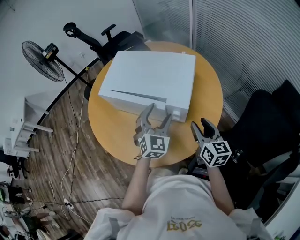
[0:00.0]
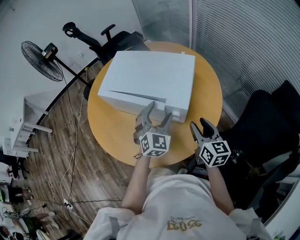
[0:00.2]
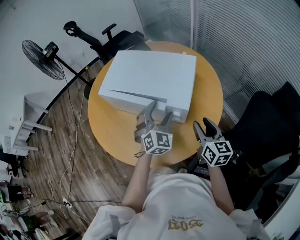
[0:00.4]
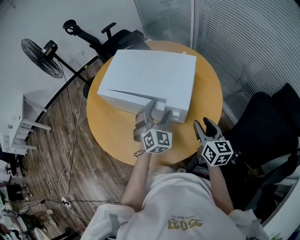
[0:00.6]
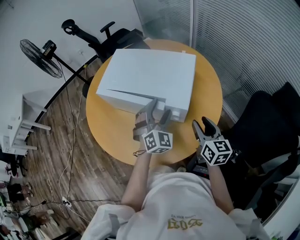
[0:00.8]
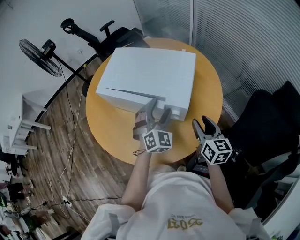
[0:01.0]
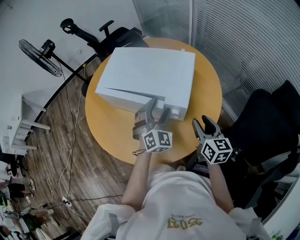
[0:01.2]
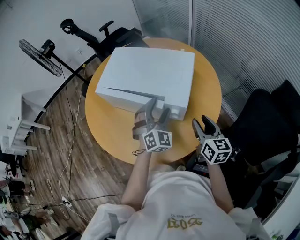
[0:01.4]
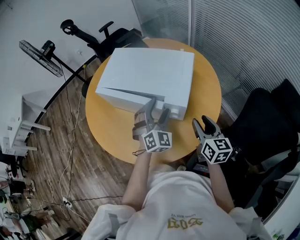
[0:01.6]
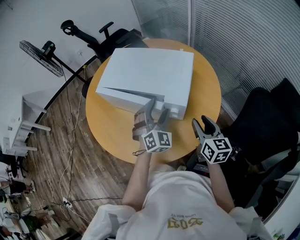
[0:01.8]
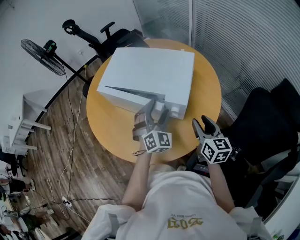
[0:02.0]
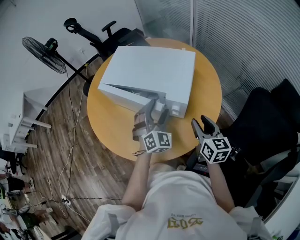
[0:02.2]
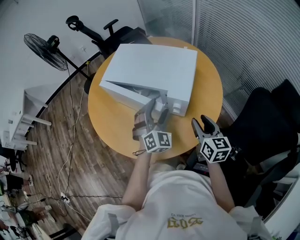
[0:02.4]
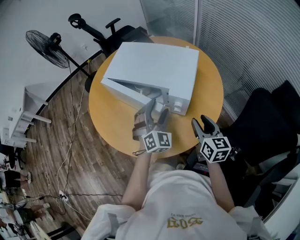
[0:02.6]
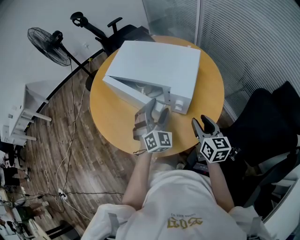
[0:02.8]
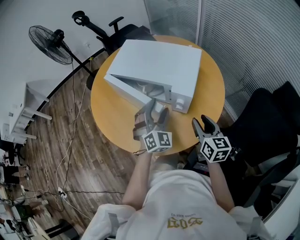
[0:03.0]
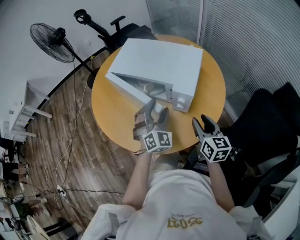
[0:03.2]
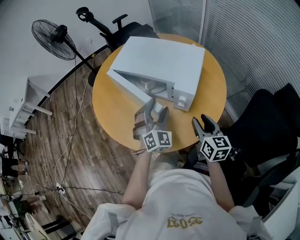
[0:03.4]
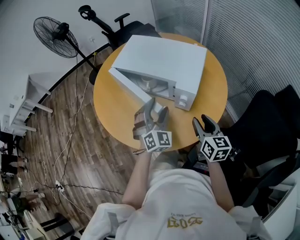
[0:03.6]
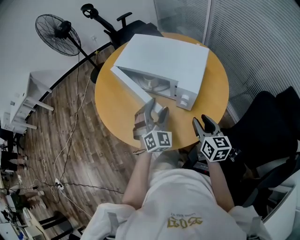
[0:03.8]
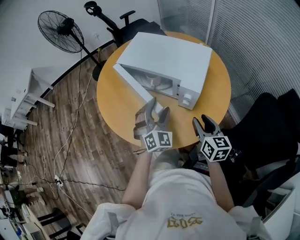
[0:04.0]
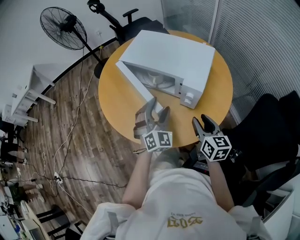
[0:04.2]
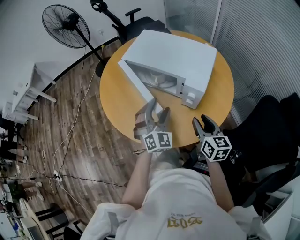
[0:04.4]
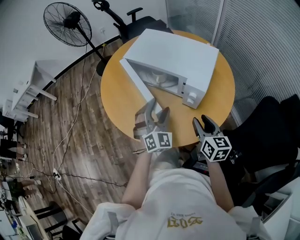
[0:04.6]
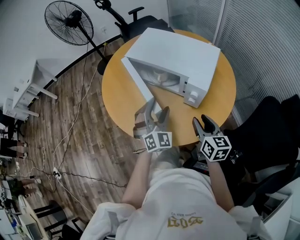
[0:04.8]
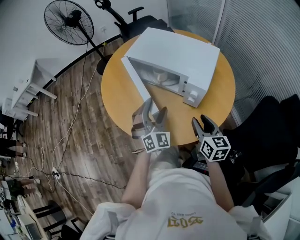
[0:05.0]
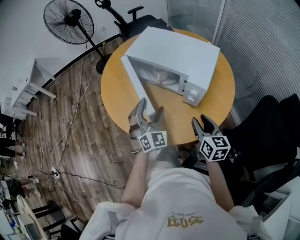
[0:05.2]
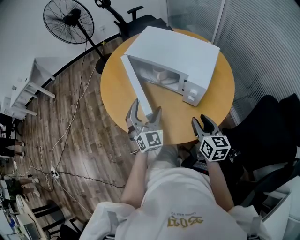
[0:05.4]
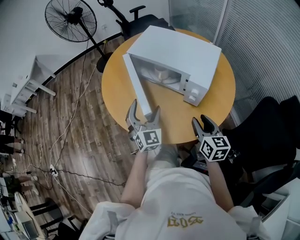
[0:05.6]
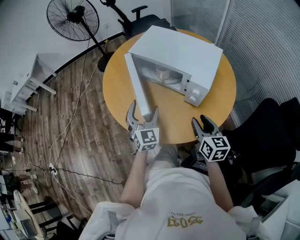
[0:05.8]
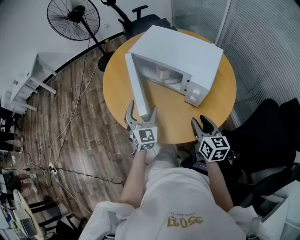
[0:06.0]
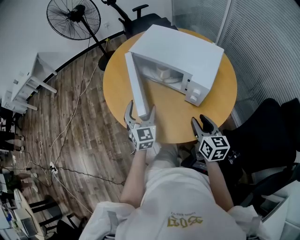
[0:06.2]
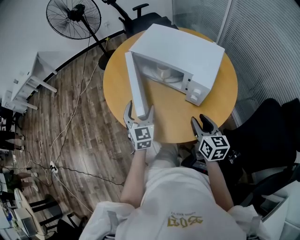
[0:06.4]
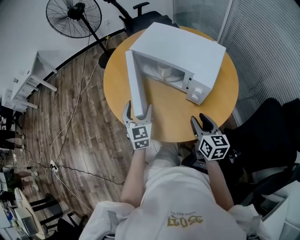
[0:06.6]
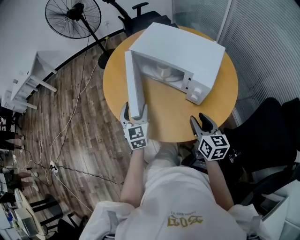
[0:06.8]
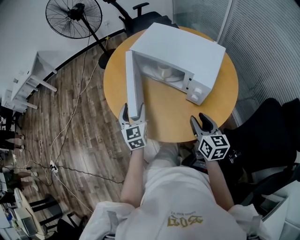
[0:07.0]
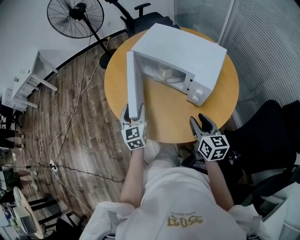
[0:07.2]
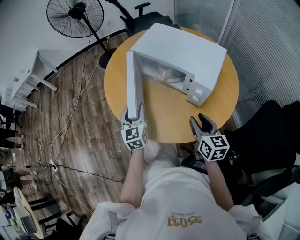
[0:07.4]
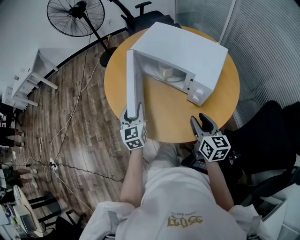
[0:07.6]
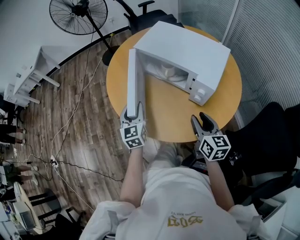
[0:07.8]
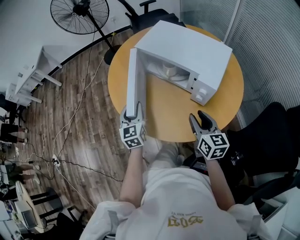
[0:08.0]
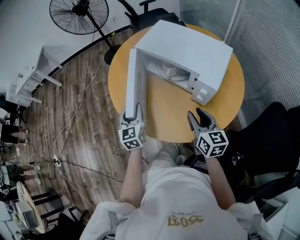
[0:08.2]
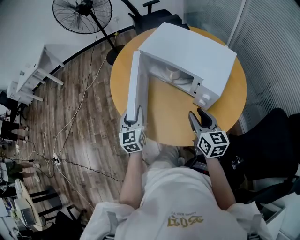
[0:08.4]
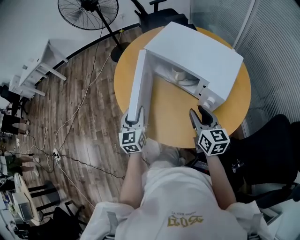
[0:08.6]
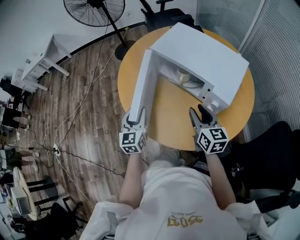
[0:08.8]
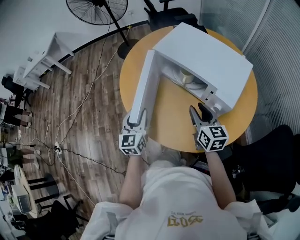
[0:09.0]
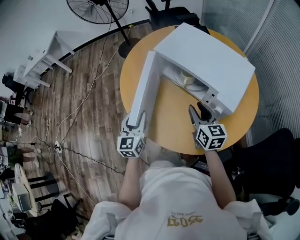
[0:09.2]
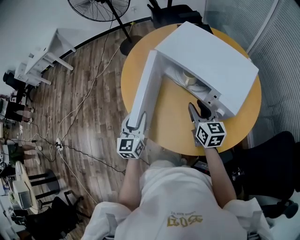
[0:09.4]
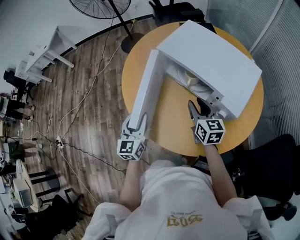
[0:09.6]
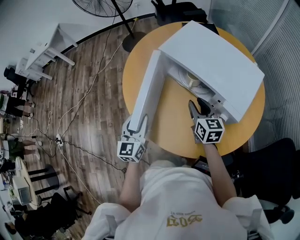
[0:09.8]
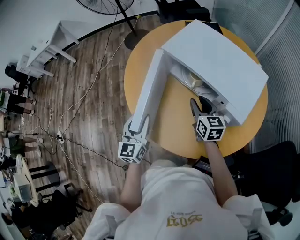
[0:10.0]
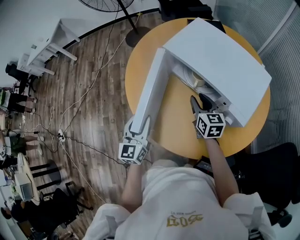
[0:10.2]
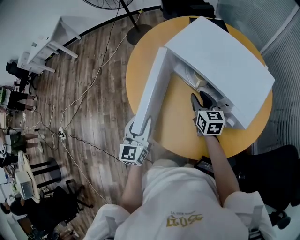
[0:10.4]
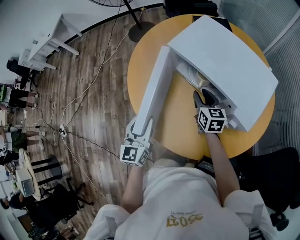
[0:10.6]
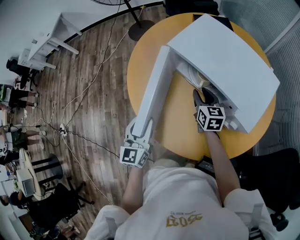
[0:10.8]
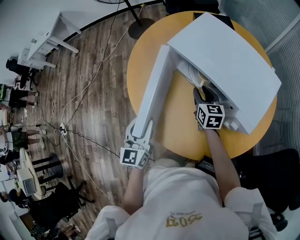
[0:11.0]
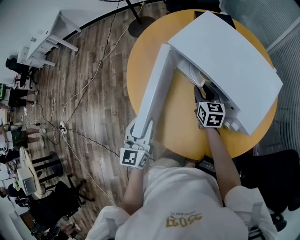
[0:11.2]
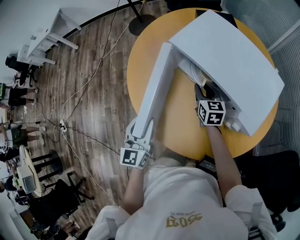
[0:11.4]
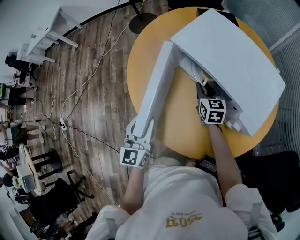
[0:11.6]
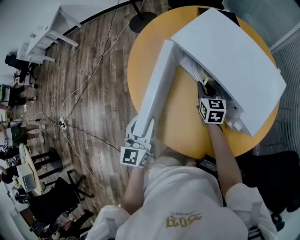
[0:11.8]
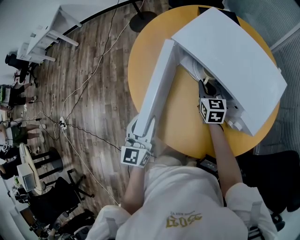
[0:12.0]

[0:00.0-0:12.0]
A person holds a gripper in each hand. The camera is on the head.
0:00.0 to 0:01.6: The grippers make only small movements.
0:01.6 to 0:03.0: The left gripper changes place by some 5 cm.
0:03.0 to 0:04.4: The left gripper ends up about 5 cm from where it was.
0:04.4 to 0:06.0: The left gripper heads to the left, covering roughly 10 cm, and rotates approximately 30 degrees.
0:06.0 to 0:07.6: The left gripper heads to the left, covering some 5 cm, changes its angle by about 20 degrees, and closes up.
0:07.6 to 0:09.0: The right gripper moves forward and to the left, roughly 10 cm.
0:09.0 to 0:10.4: The right gripper travels forward and downward by roughly 15 cm.
0:10.4 to 0:12.0: The right gripper travels forward by some 5 cm.

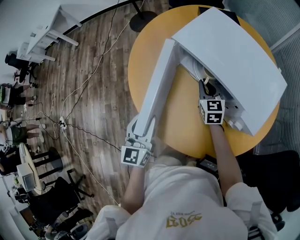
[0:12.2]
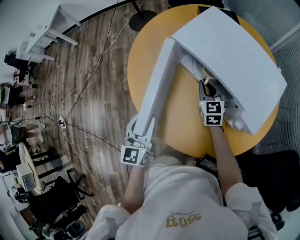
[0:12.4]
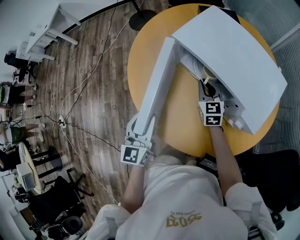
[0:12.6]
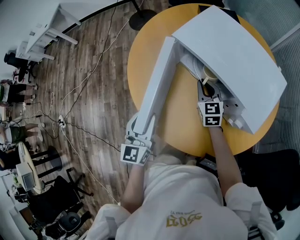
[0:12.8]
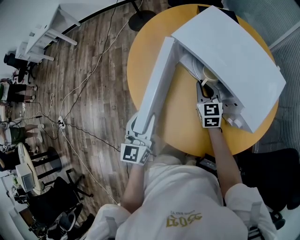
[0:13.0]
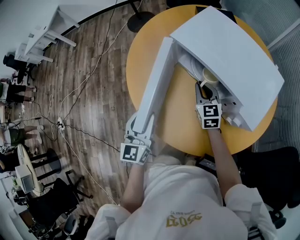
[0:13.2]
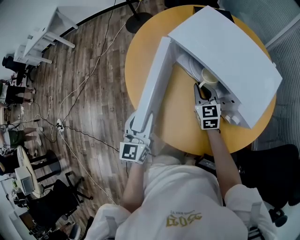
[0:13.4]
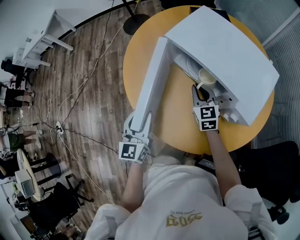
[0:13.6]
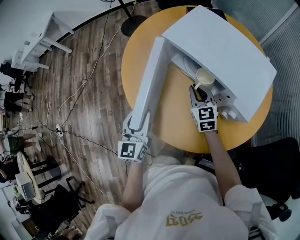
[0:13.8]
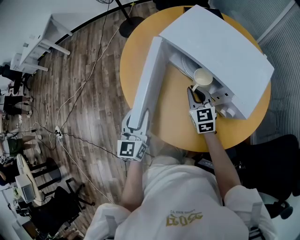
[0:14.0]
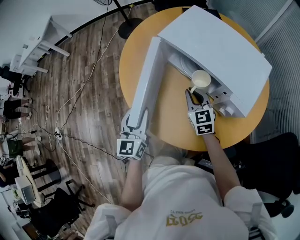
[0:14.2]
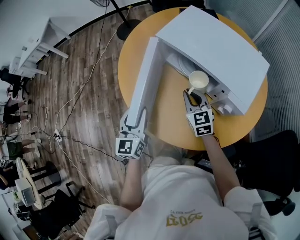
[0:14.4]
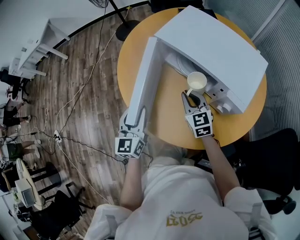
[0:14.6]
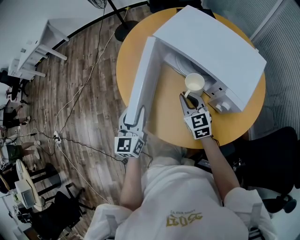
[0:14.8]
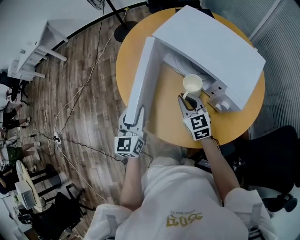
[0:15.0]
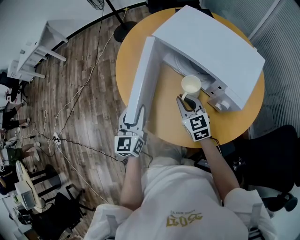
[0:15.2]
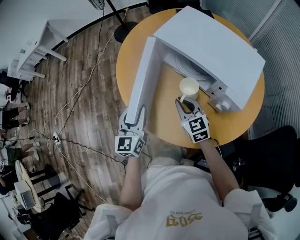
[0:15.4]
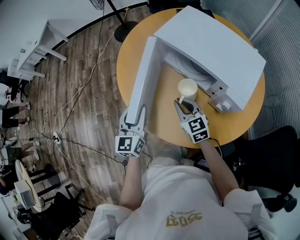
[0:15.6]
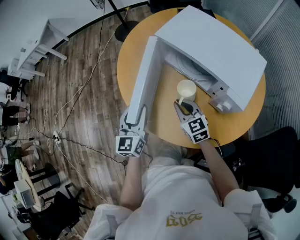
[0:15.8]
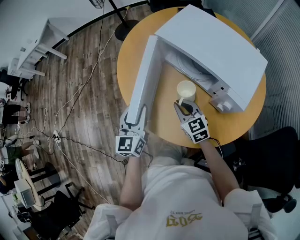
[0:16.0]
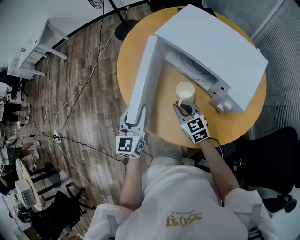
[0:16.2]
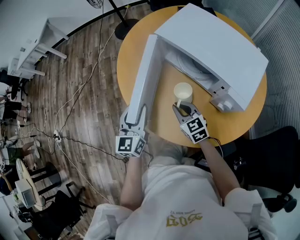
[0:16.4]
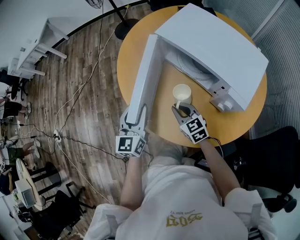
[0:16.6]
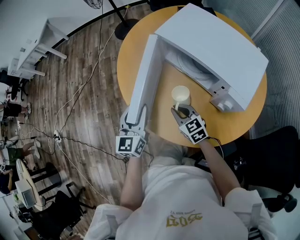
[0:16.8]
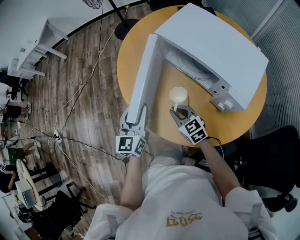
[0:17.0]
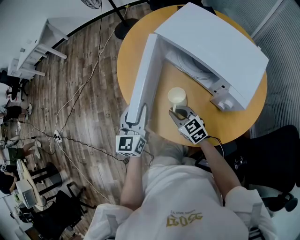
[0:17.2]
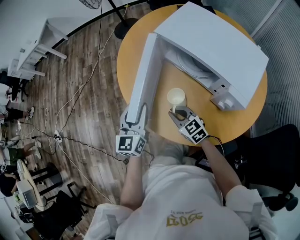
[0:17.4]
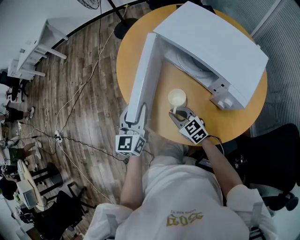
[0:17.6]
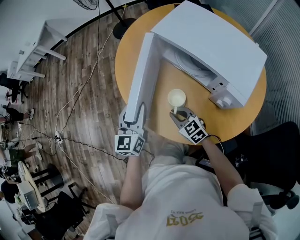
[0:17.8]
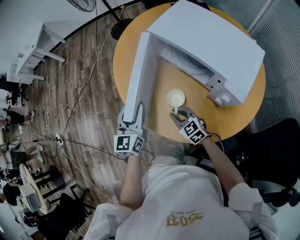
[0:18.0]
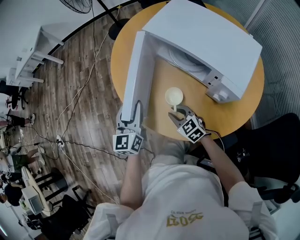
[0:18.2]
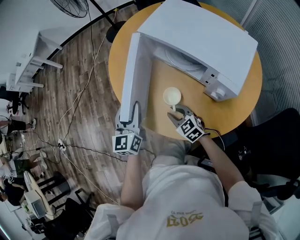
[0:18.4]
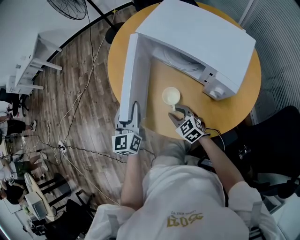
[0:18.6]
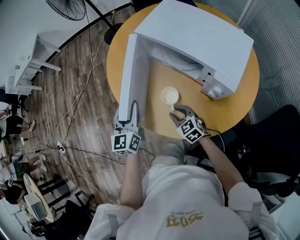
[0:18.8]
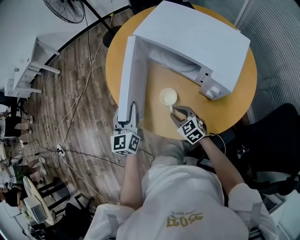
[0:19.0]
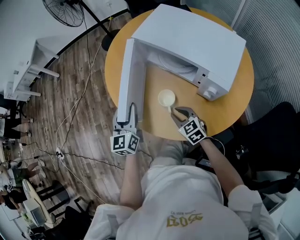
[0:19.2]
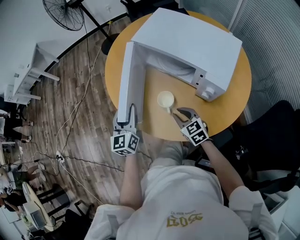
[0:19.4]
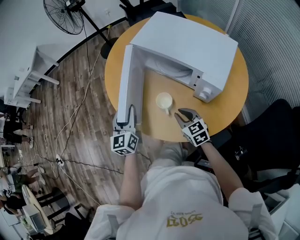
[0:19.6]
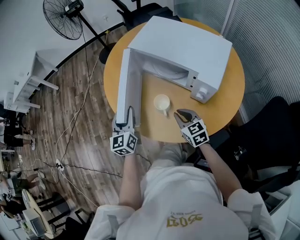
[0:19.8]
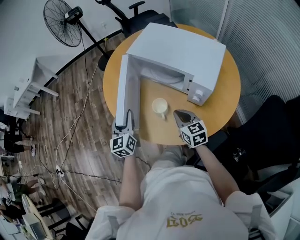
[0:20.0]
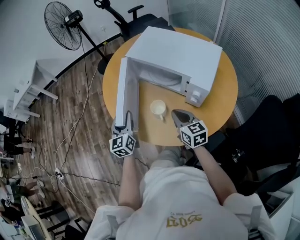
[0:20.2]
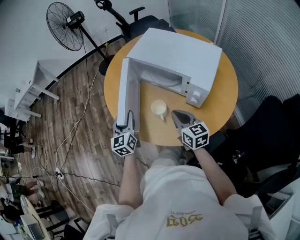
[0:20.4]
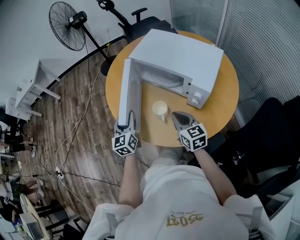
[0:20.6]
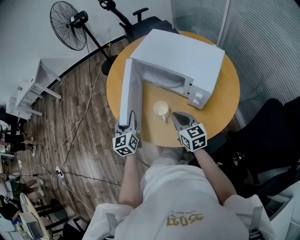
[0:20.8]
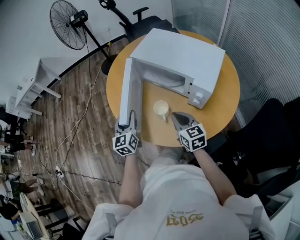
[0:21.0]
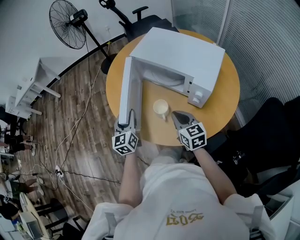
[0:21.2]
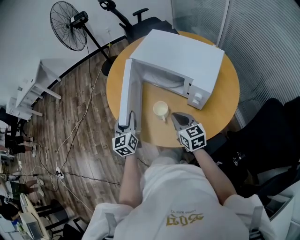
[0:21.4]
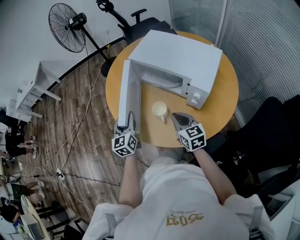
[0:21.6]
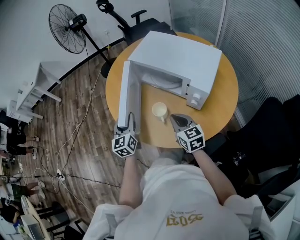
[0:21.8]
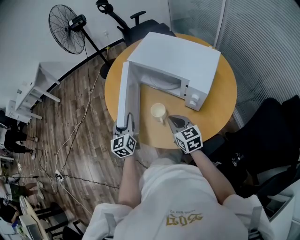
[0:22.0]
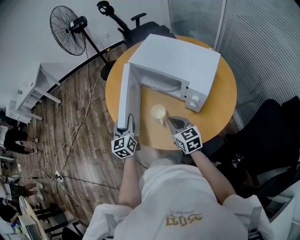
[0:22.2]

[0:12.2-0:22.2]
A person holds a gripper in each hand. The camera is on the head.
0:12.2 to 0:13.6: The right gripper changes place by some 5 cm.
0:13.6 to 0:15.0: The right gripper travels backward by approximately 10 cm.
0:15.0 to 0:16.4: The right gripper shifts by approximately 5 cm.
0:16.4 to 0:18.0: The right gripper heads downward, covering approximately 5 cm.
0:18.0 to 0:19.4: The right gripper travels to the right by some 5 cm.
0:19.4 to 0:20.8: The right gripper travels upward by approximately 10 cm, turns by about 20 degrees, and closes.
0:20.8 to 0:22.2: The grippers make only small movements.

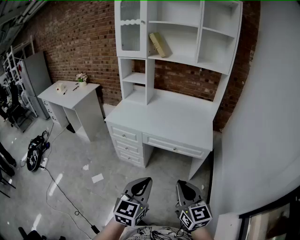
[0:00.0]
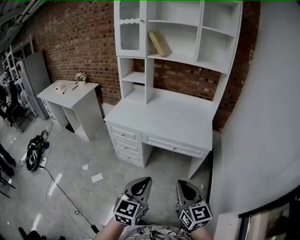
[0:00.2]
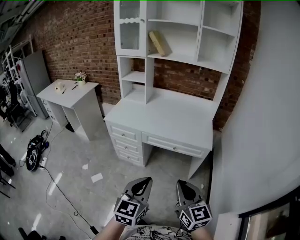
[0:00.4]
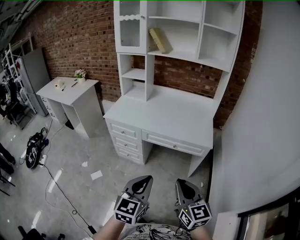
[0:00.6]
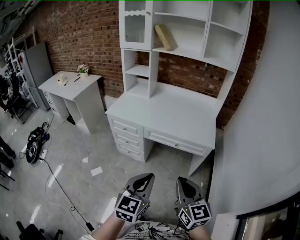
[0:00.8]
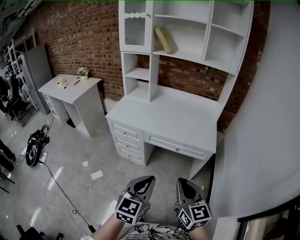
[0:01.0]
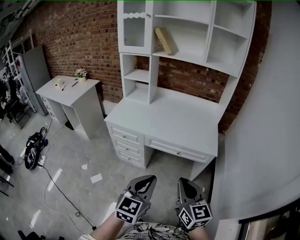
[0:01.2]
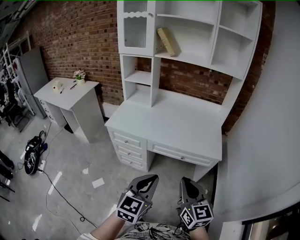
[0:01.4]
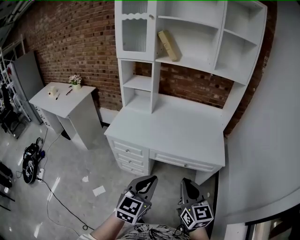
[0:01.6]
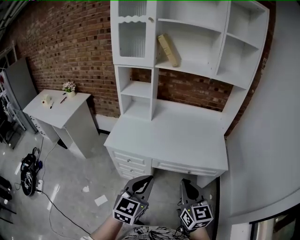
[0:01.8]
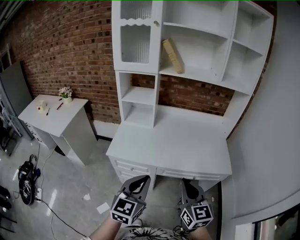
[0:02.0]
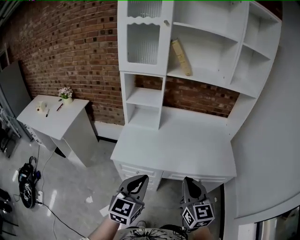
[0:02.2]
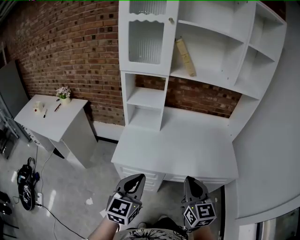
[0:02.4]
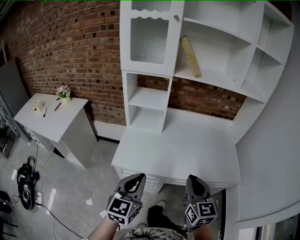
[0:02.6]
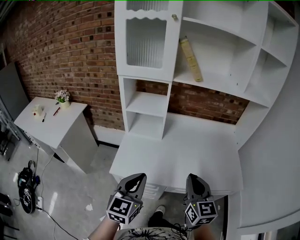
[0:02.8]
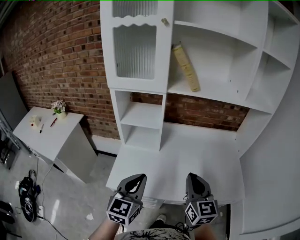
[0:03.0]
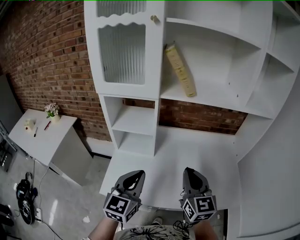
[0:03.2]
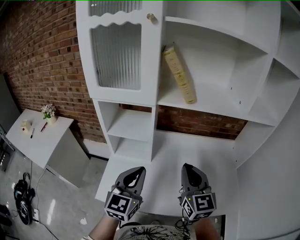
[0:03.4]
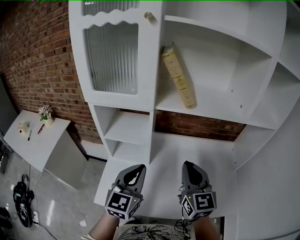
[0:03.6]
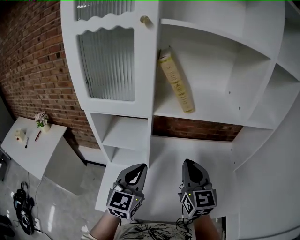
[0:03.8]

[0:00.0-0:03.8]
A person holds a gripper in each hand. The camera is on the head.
0:00.0 to 0:01.2: Both grippers travel together forward, roughly 10 cm.
0:01.2 to 0:02.6: The two grippers travel together, to the left and forward, about 40 cm.
0:02.6 to 0:03.8: The grippers both shift forward by approximately 35 cm.
